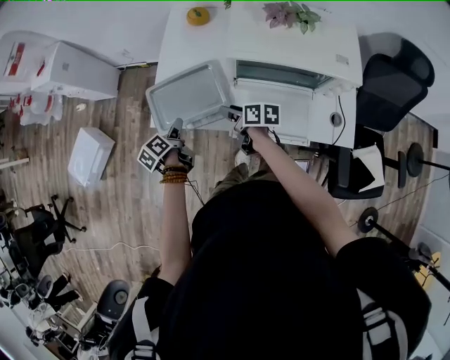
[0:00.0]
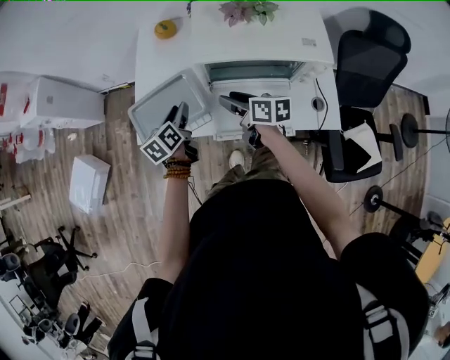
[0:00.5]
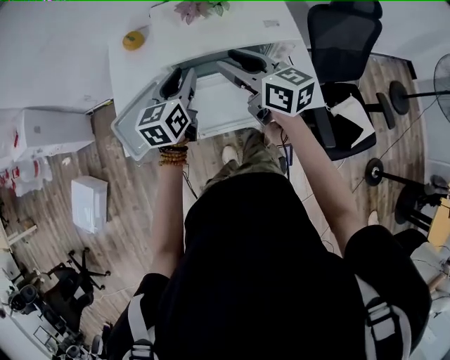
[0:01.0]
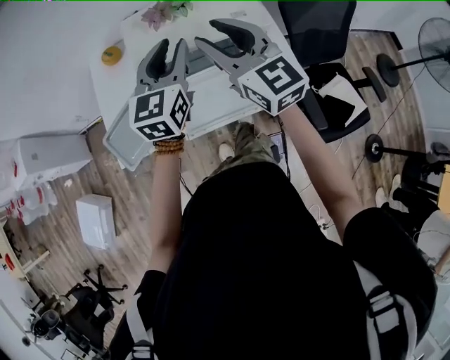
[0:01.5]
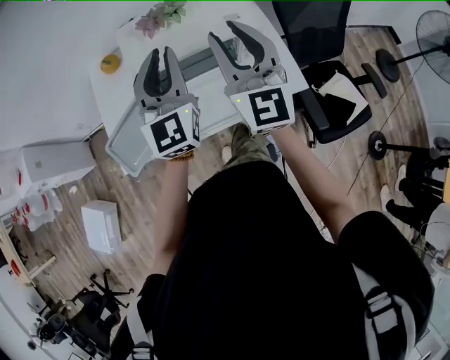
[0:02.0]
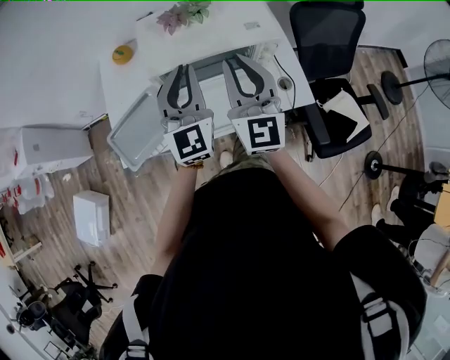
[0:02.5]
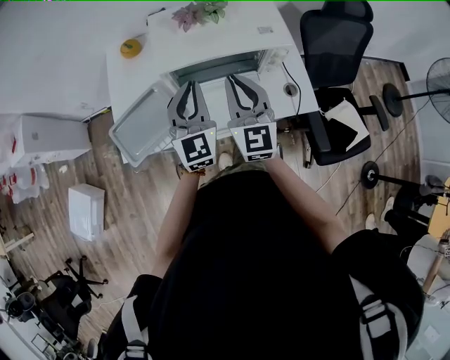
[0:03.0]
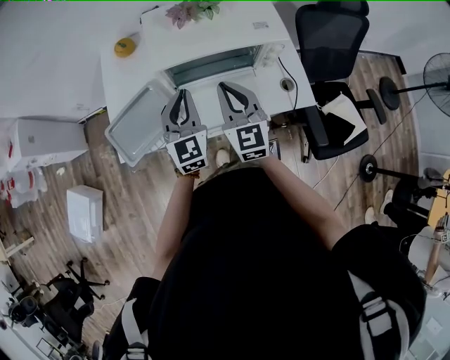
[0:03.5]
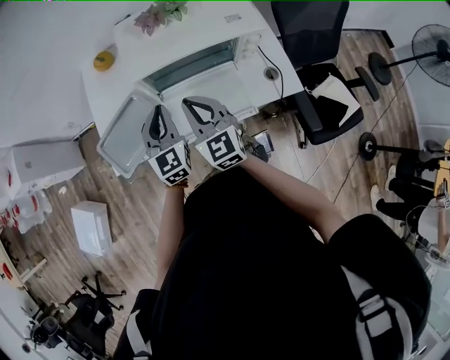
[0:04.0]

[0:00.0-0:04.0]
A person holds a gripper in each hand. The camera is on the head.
0.0 to 2.0 s: The grippers both shift upward by approximately 35 cm. The left gripper twists some 70 degrees clockwise, seen from behind. Meanwhile the right gripper points its fingers about 40 degrees further upward.
2.0 to 4.0 s: The grippers both shift downward and to the left by roughly 20 cm. The left gripper turns by roughly 20 degrees. Meanwhile the right gripper rotates approximately 30 degrees, and closes up.

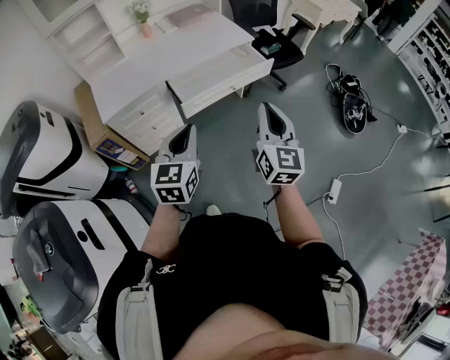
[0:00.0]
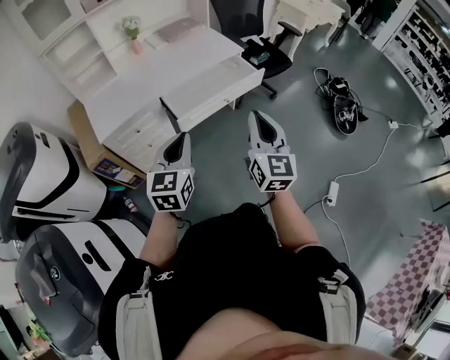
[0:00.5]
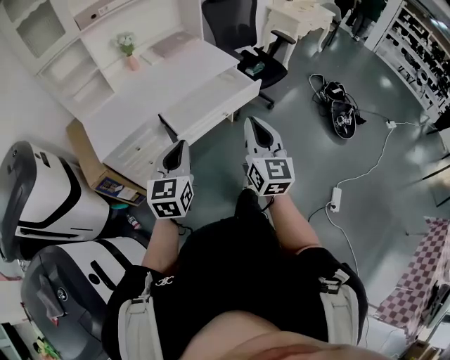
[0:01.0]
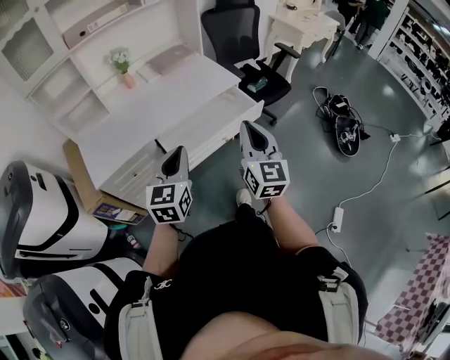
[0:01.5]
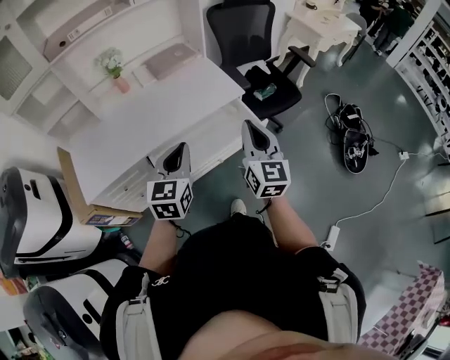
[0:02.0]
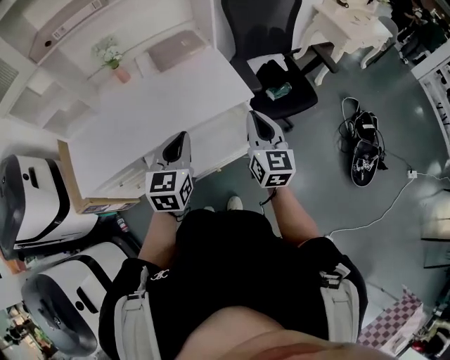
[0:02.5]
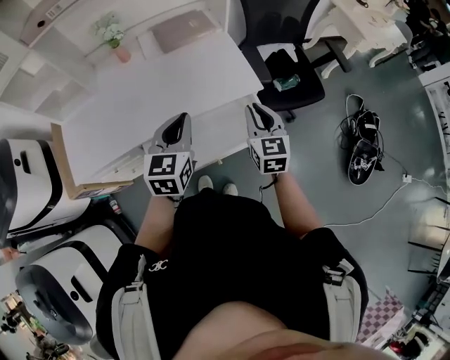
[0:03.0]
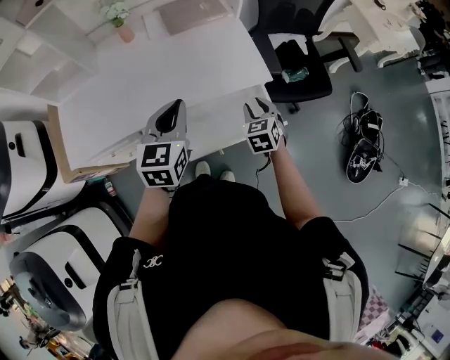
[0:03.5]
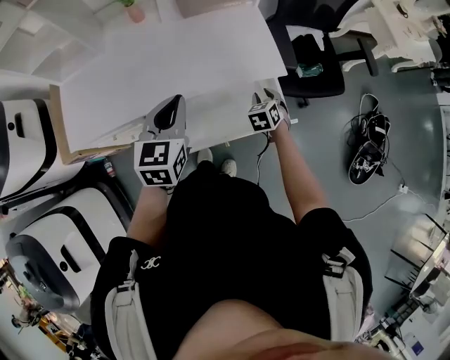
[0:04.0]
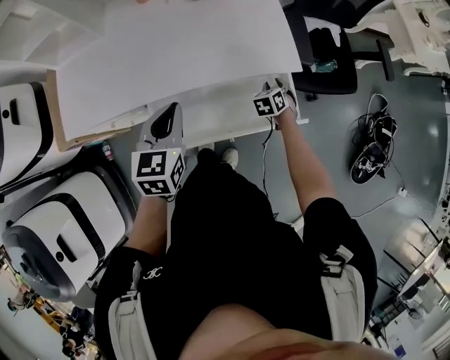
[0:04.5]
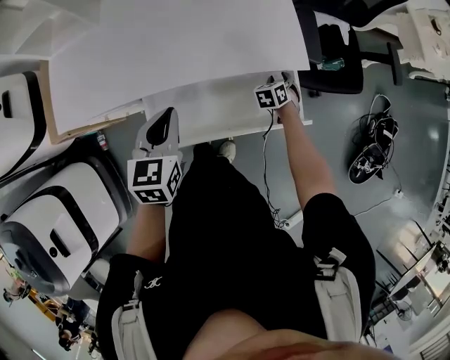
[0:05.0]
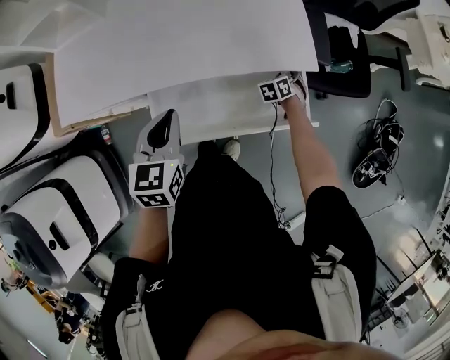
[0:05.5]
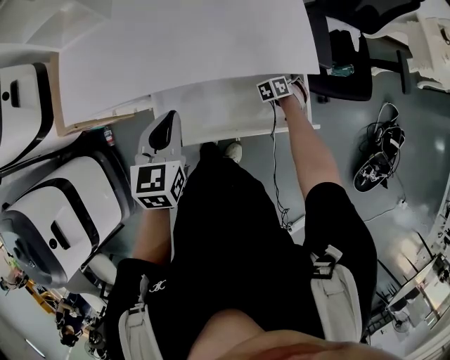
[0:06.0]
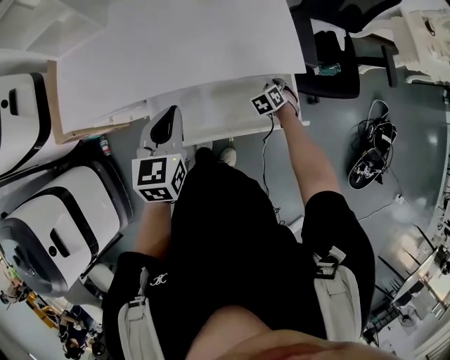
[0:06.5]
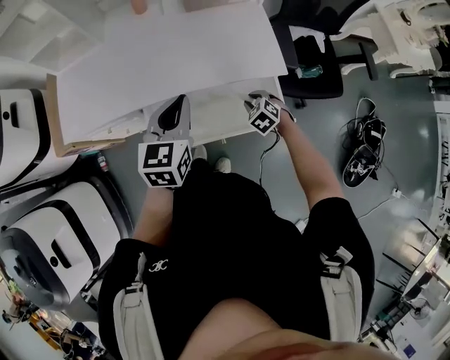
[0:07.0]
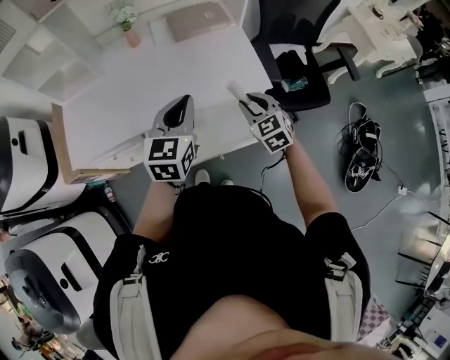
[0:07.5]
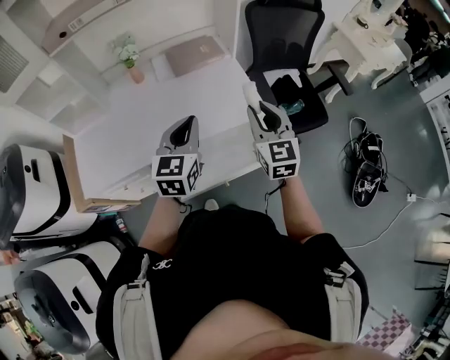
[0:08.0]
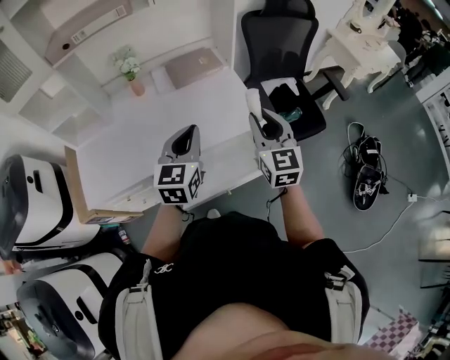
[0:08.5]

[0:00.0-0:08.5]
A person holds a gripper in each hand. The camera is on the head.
0.0 to 2.0 s: Both grippers move forward, some 35 cm.
2.0 to 4.0 s: The right gripper travels downward and forward by about 40 cm, angles its fingers downward, by approximately 50 degrees, and opens up. The left gripper shifts some 20 cm forward.
4.0 to 6.5 s: The left gripper travels downward by about 5 cm. Meanwhile the right gripper travels downward by some 10 cm, and changes its angle by about 20 degrees.
6.5 to 8.5 s: The left gripper moves upward and to the right, about 15 cm, and changes its angle by about 20 degrees. The right gripper travels upward by some 40 cm, and tips its fingers upward by about 60 degrees.

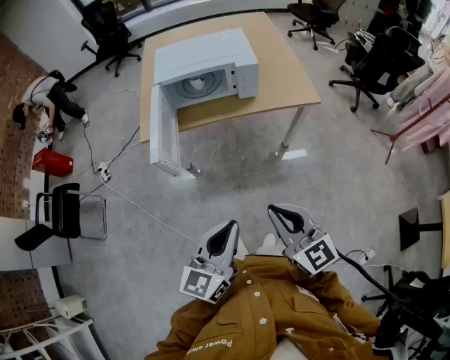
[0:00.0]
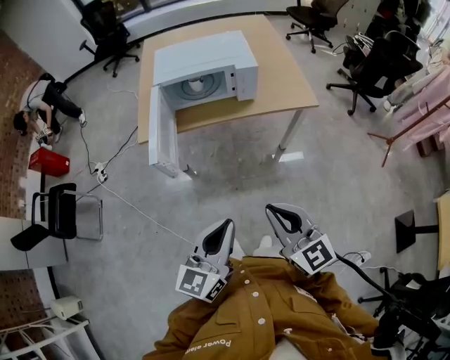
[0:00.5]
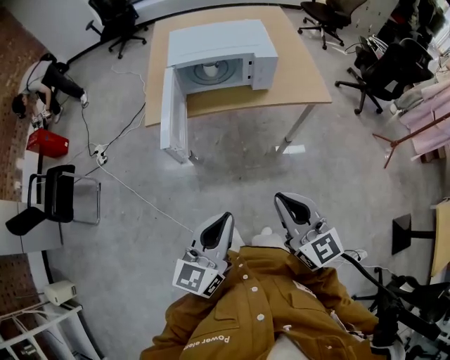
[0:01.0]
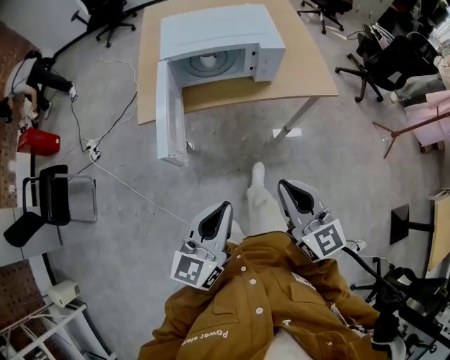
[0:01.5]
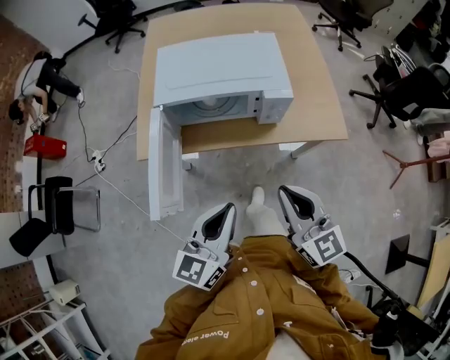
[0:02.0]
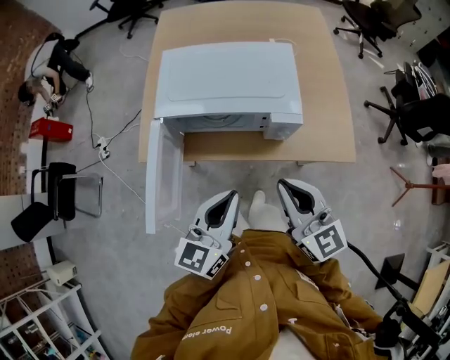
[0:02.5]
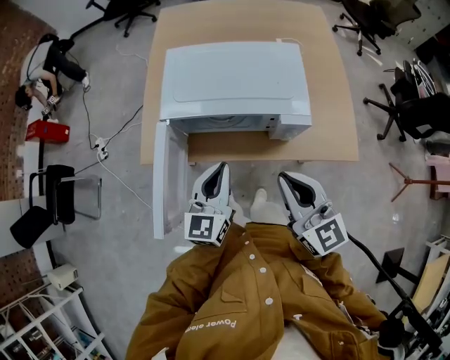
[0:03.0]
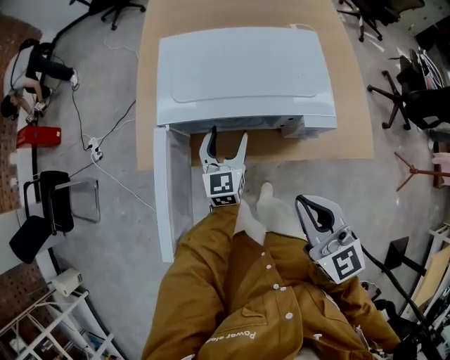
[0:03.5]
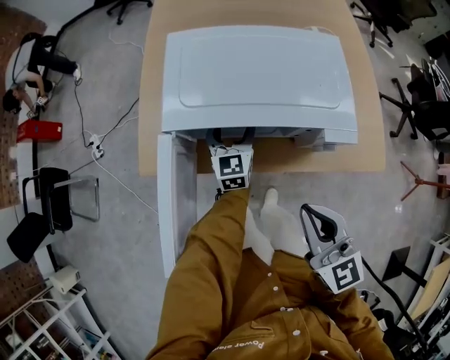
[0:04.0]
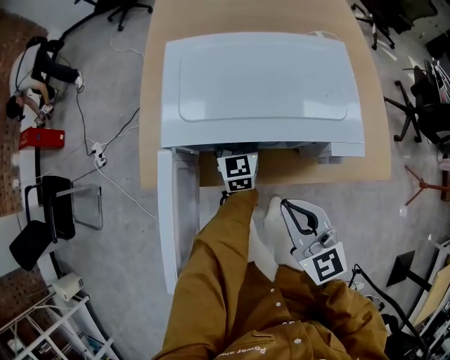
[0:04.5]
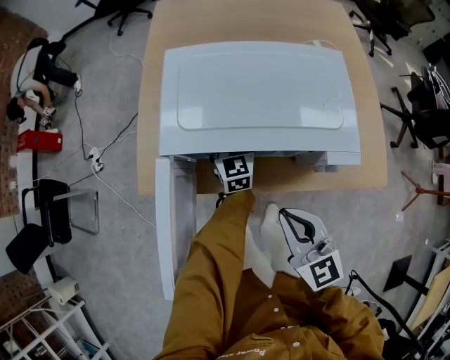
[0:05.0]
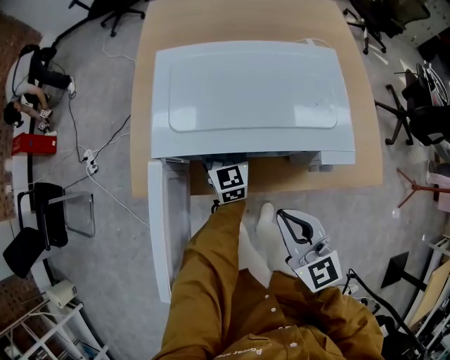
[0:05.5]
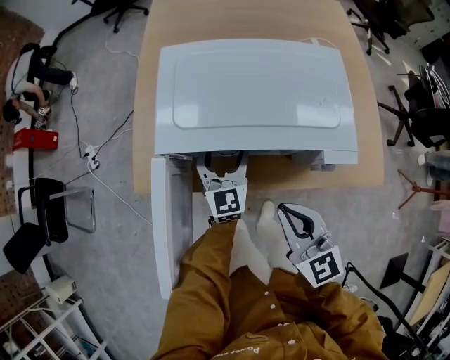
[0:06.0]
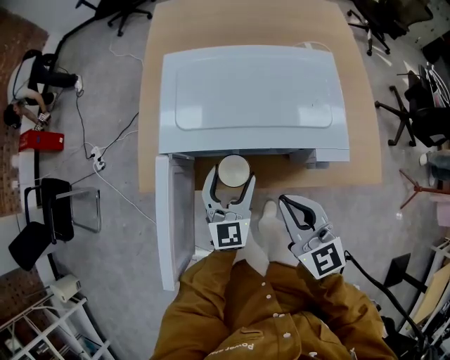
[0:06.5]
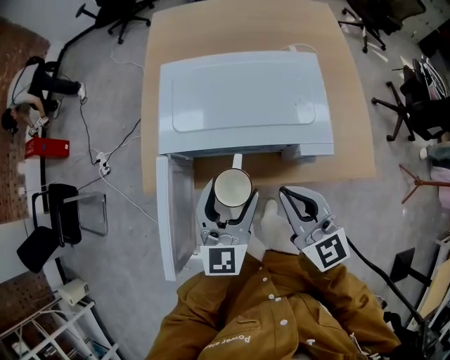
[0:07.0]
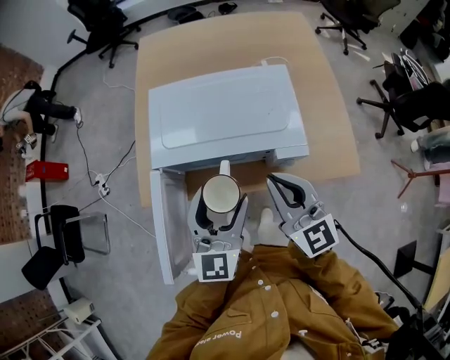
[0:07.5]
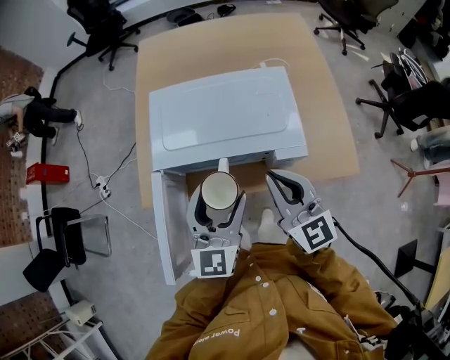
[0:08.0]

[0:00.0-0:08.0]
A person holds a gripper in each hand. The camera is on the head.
0.0 to 2.0 s: Both grippers move forward, approximately 30 cm.
2.0 to 4.0 s: The right gripper goes roughly 15 cm forward and downward; the left gripper moves forward and downward, about 50 cm, swivels some 30 degrees, and opens its fingers.
4.0 to 6.0 s: The right gripper shifts approximately 5 cm forward.
6.0 to 8.0 s: The right gripper is displaced upward and to the right by roughly 15 cm. Meanwhile the left gripper goes about 25 cm upward and backward.

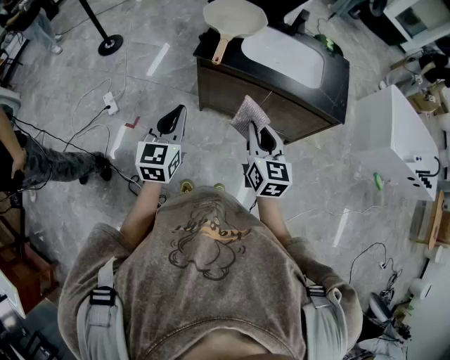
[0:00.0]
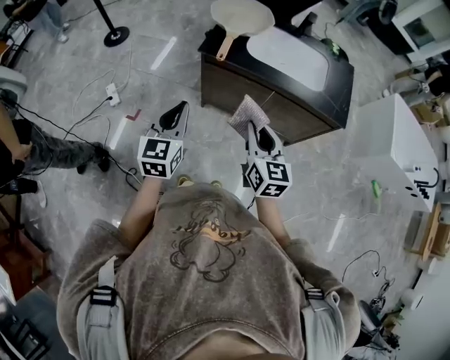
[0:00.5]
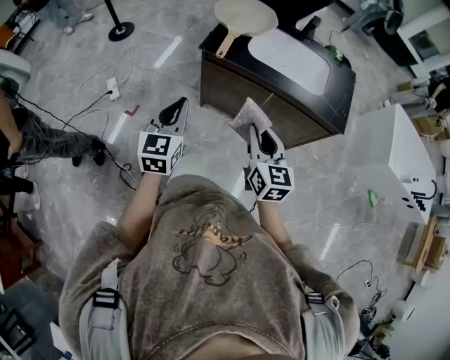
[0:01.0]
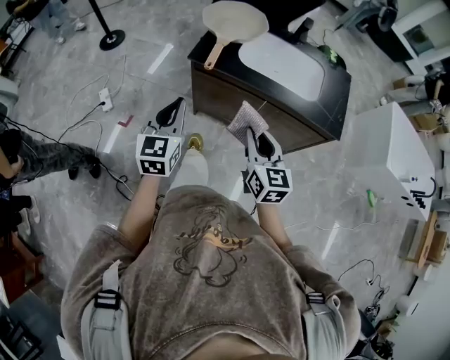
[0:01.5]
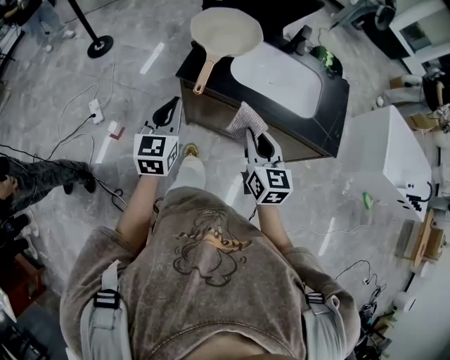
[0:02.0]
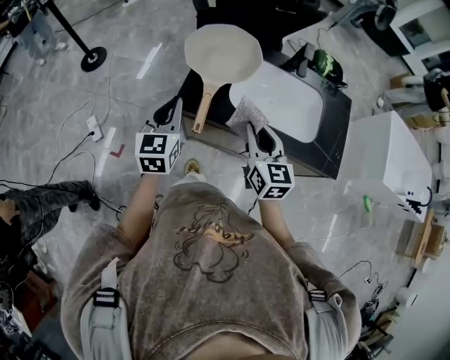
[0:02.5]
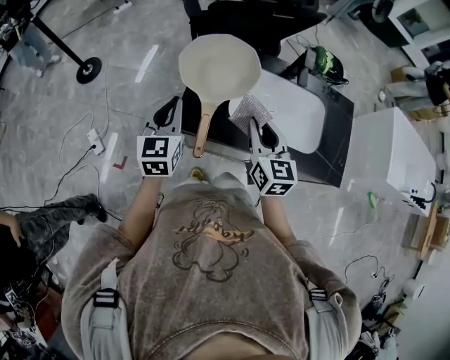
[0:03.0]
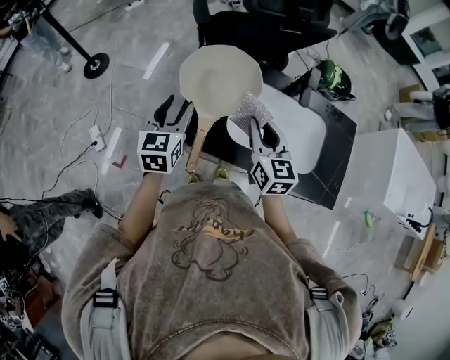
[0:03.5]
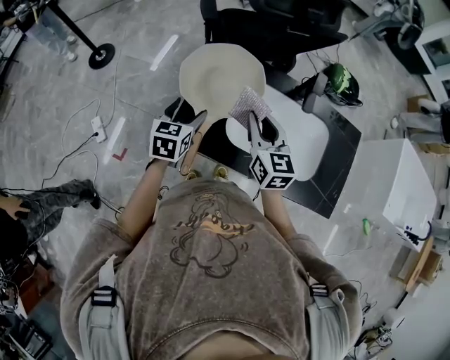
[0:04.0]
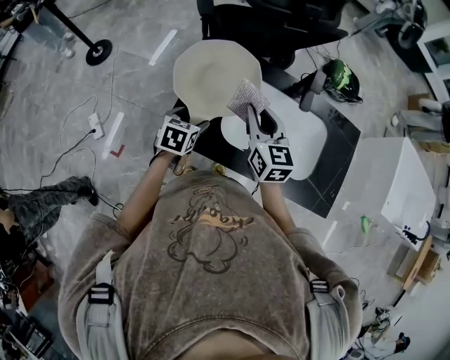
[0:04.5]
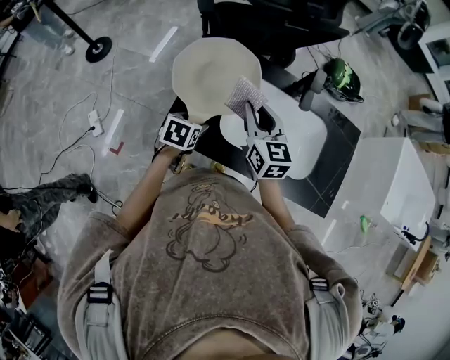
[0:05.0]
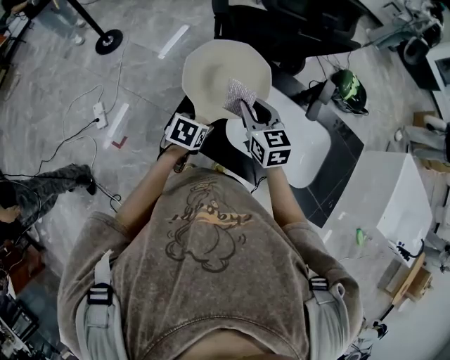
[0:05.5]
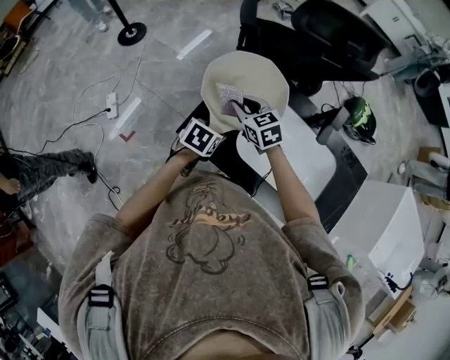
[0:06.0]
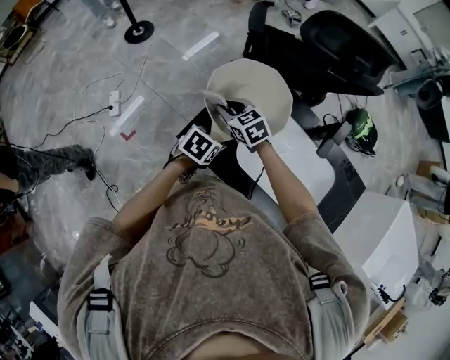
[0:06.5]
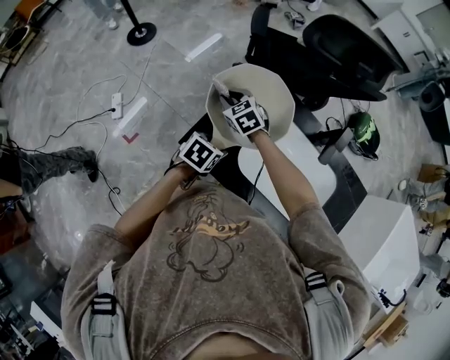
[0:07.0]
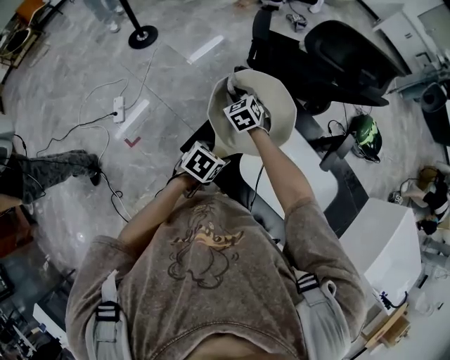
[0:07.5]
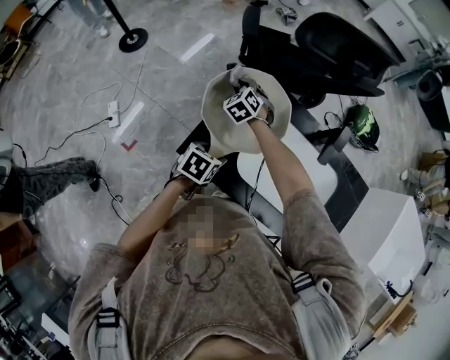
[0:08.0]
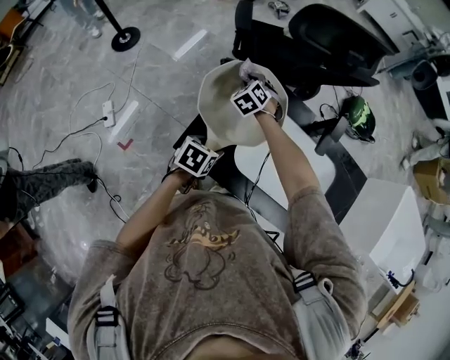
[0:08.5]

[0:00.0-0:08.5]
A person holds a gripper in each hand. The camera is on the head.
0.0 to 2.0 s: Both grippers travel together forward, some 15 cm.
2.0 to 4.0 s: The two grippers go some 30 cm forward. The left gripper swivels some 20 degrees, and opens.
4.0 to 6.5 s: The right gripper heads to the left, downward and forward, covering about 25 cm, and rotates some 50 degrees. The left gripper heads downward, covering about 10 cm, and swivels roughly 30 degrees.
6.5 to 8.5 s: The right gripper travels forward by about 15 cm, and rotates roughly 40 degrees.
